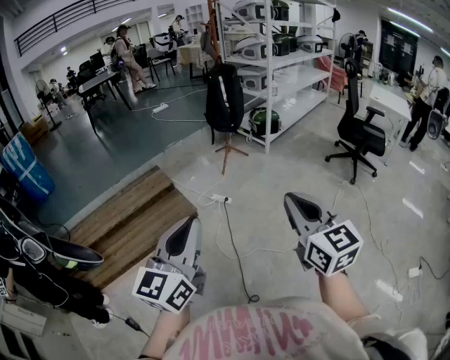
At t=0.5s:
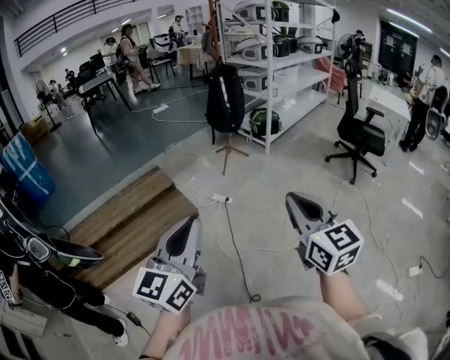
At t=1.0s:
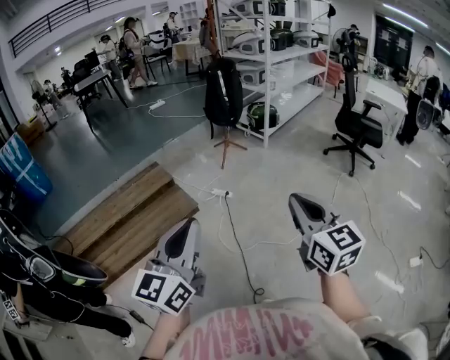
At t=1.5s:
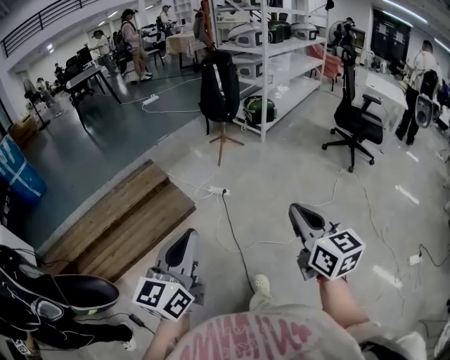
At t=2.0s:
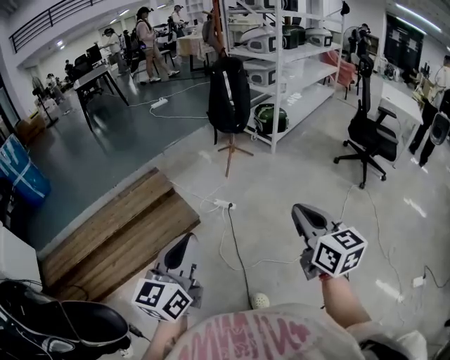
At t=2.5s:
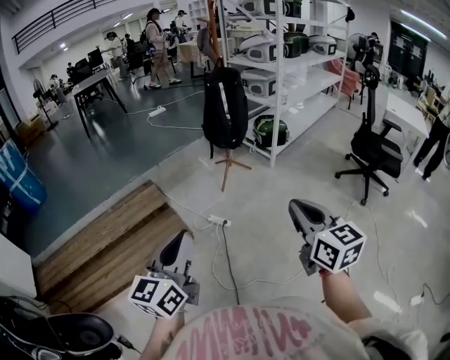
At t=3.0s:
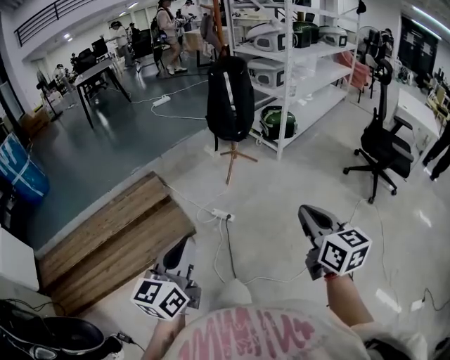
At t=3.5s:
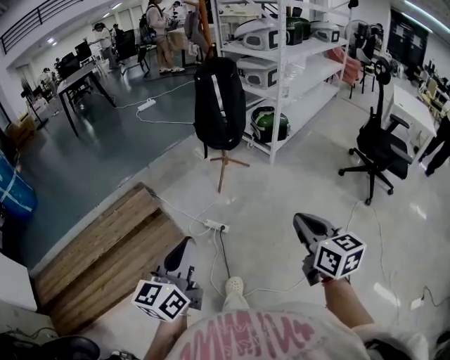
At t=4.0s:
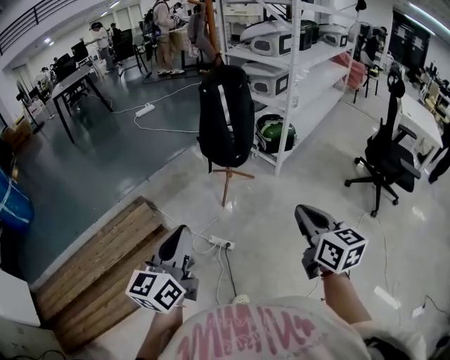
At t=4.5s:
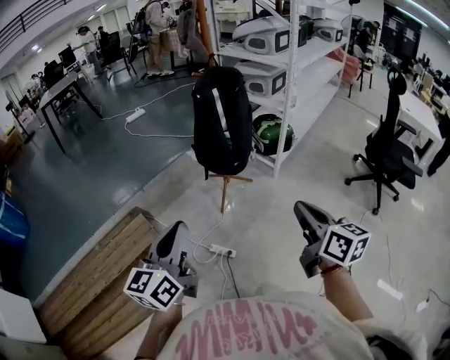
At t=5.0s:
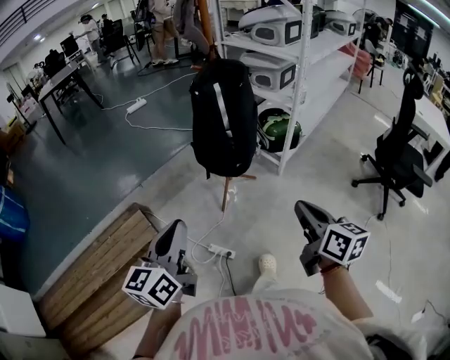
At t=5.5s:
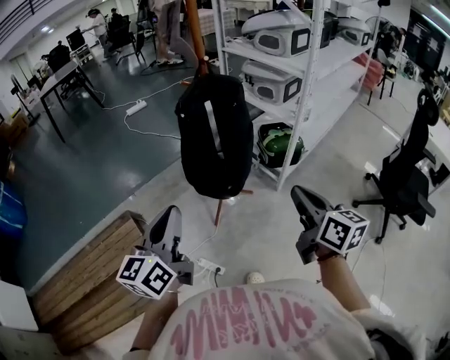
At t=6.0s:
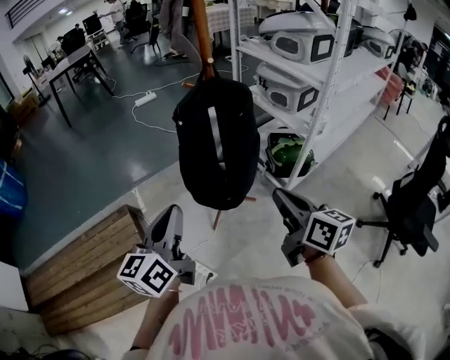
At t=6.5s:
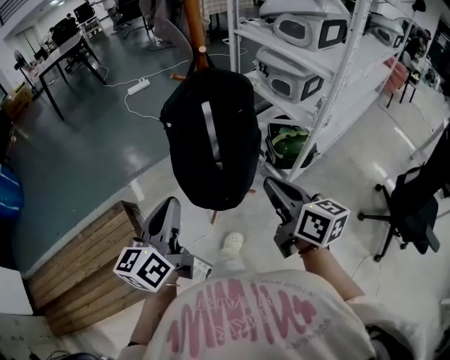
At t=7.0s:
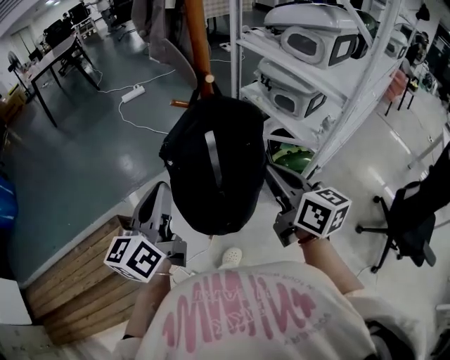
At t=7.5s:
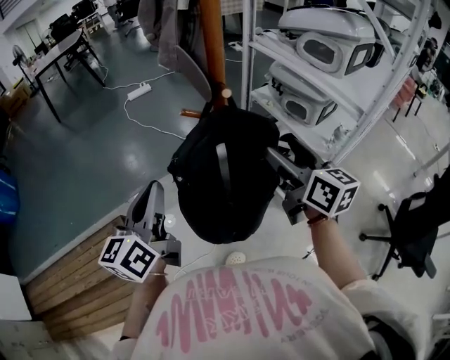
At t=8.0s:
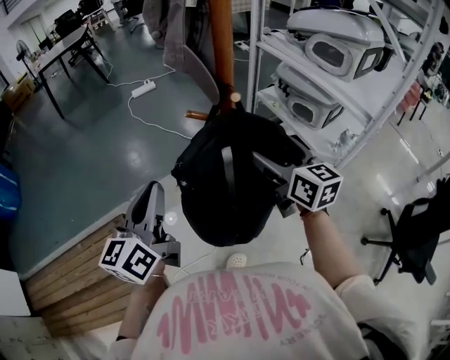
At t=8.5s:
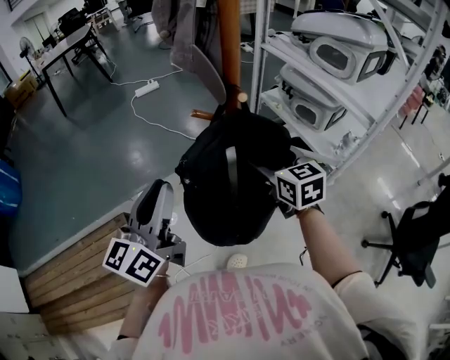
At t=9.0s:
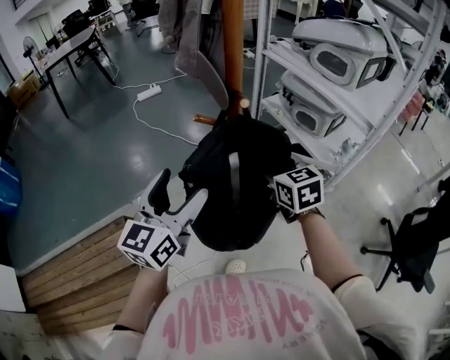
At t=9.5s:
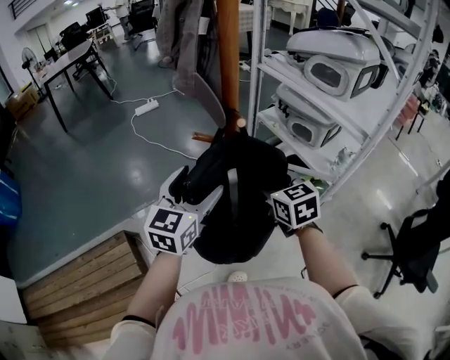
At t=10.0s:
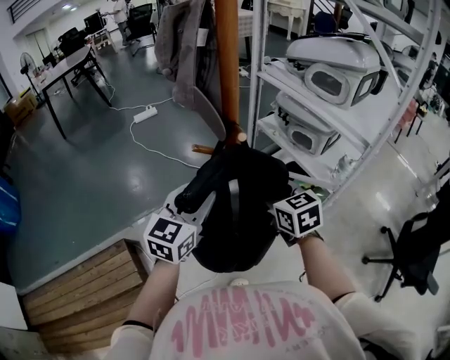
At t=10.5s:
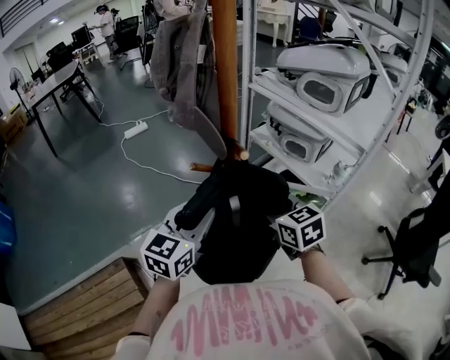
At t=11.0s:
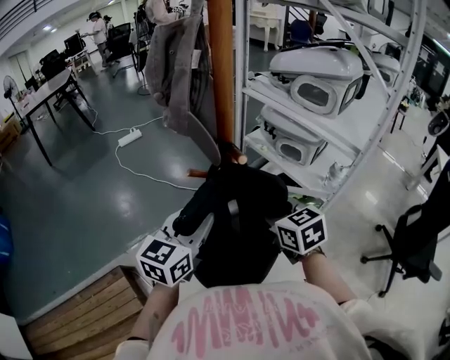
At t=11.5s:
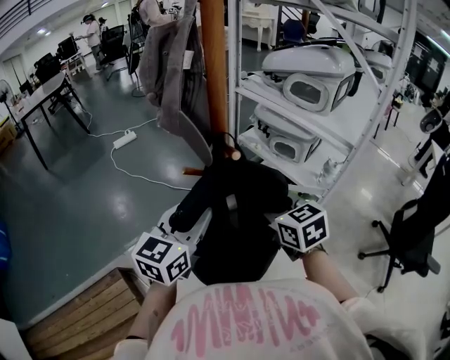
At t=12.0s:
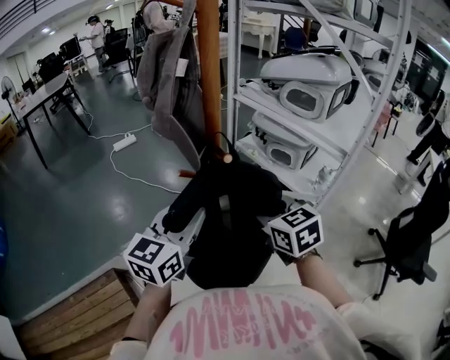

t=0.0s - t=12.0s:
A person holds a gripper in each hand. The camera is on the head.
t=0.0s - t=2.0s: The grippers both shift forward and downward by about 15 cm.
t=2.0s - t=4.0s: Both grippers are carried forward, approximately 40 cm.
t=4.0s - t=6.0s: Both grippers travel together forward, about 40 cm. The right gripper turns by about 20 degrees.
t=6.0s - t=8.0s: Both grippers travel together forward, roughly 30 cm. The right gripper opens.
t=8.0s - t=10.0s: The right gripper is displaced downward by about 5 cm, swivels roughly 20 degrees, and closes; the left gripper is displaced to the right and forward by roughly 15 cm, swivels approximately 30 degrees, and opens.
t=10.0s - t=12.0s: Both grippers move upward, some 5 cm.

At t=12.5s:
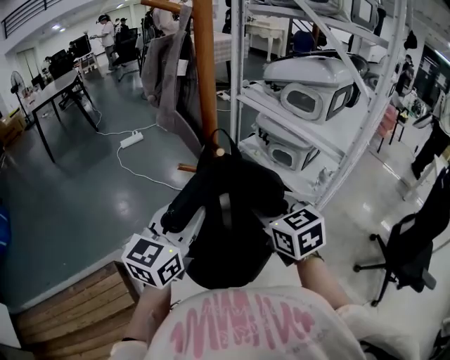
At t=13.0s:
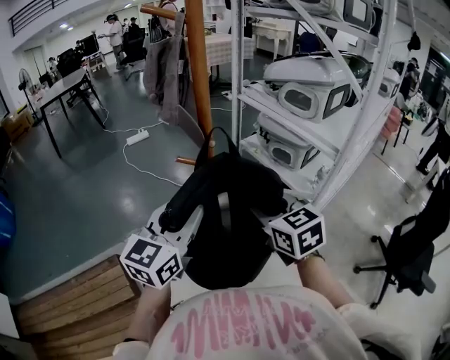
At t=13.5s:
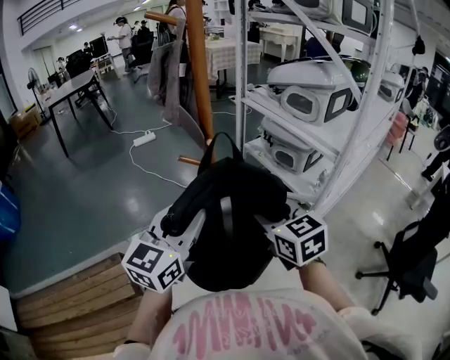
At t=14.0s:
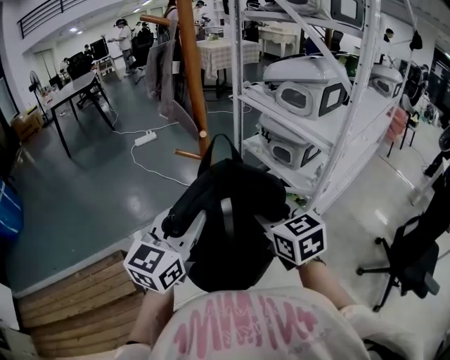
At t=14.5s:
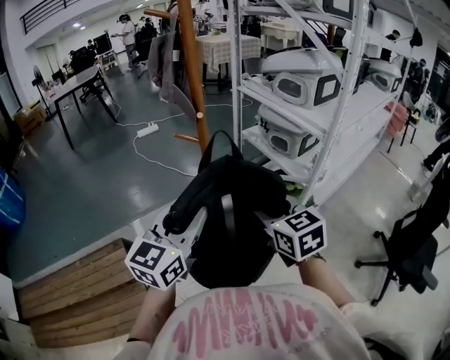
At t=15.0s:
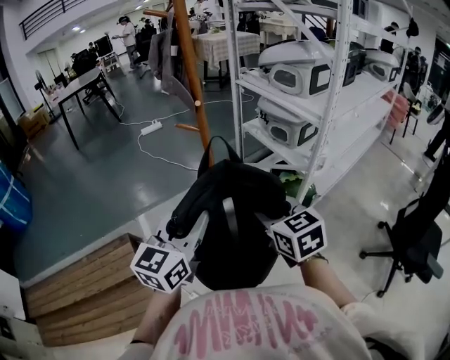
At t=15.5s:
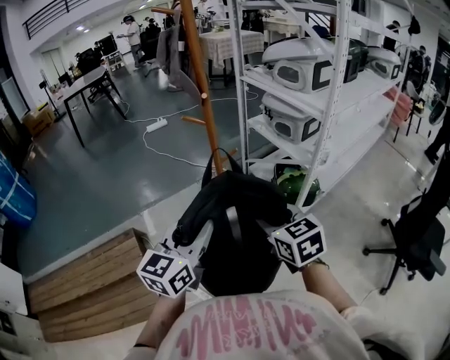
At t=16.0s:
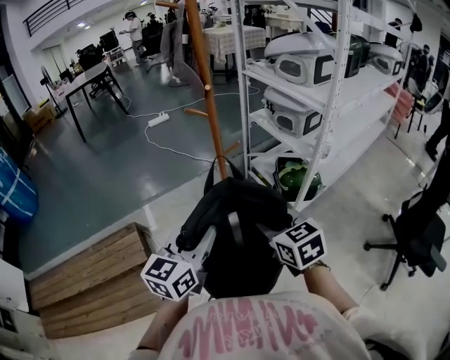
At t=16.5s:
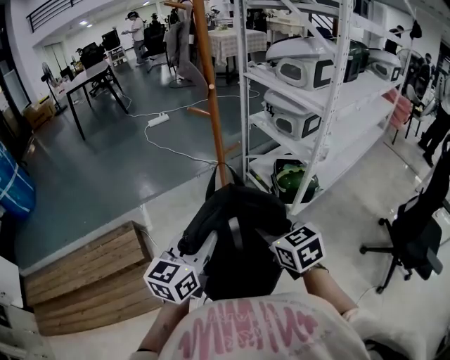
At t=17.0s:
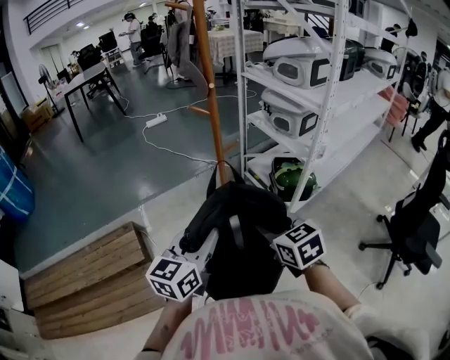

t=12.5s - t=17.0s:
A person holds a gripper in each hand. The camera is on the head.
t=12.5s - t=14.5s: The two grippers go about 15 cm backward.
t=14.5s - t=17.0s: The grippers both shift backward and downward by some 20 cm.

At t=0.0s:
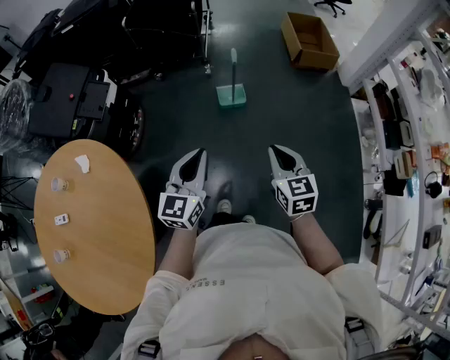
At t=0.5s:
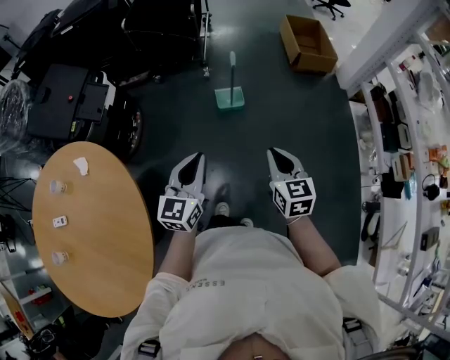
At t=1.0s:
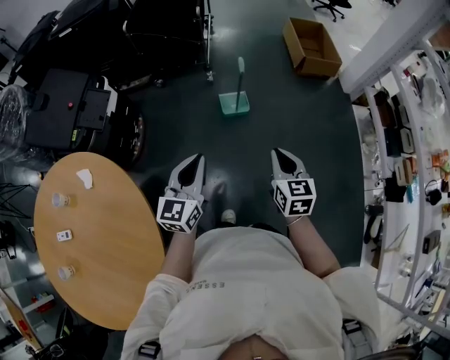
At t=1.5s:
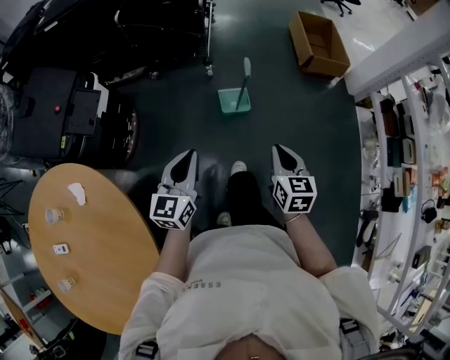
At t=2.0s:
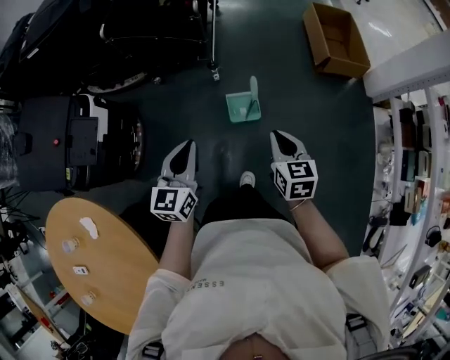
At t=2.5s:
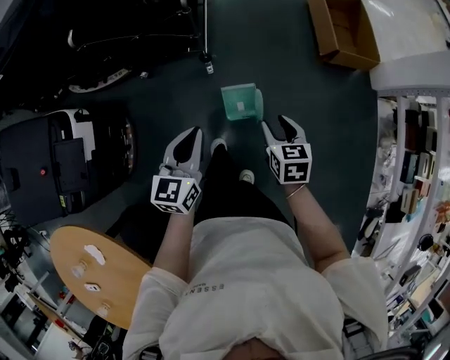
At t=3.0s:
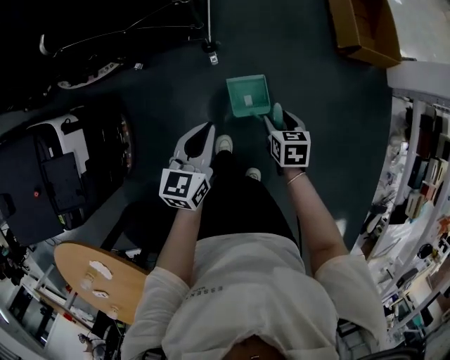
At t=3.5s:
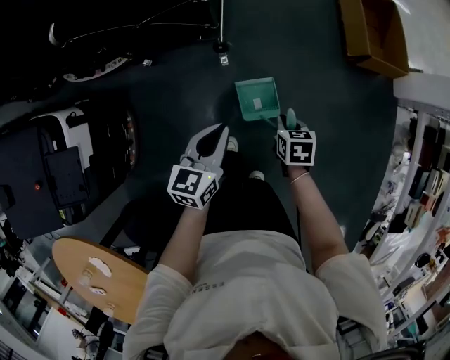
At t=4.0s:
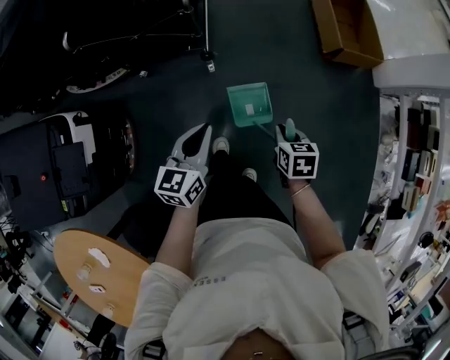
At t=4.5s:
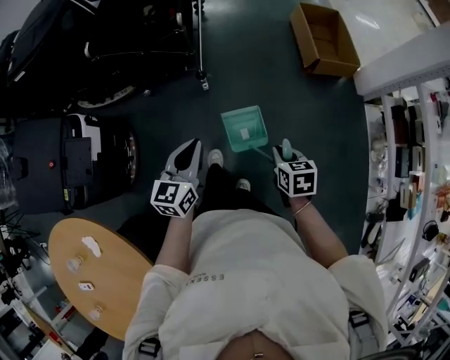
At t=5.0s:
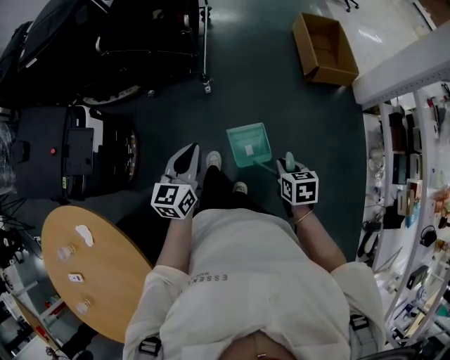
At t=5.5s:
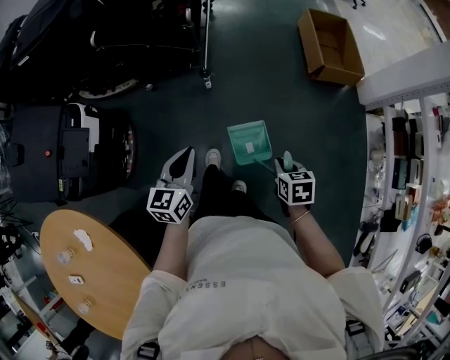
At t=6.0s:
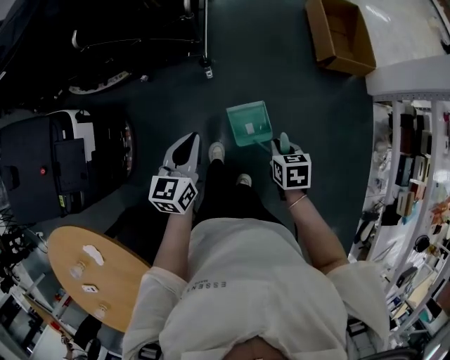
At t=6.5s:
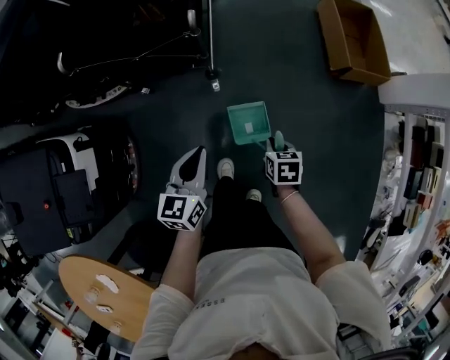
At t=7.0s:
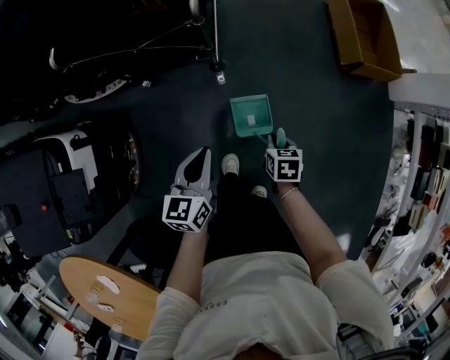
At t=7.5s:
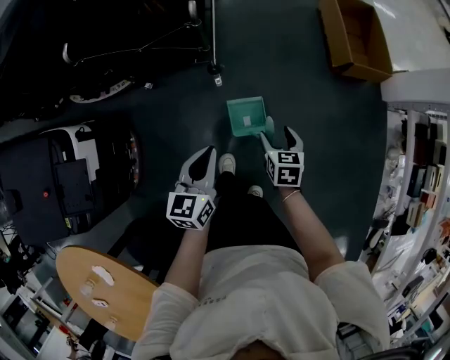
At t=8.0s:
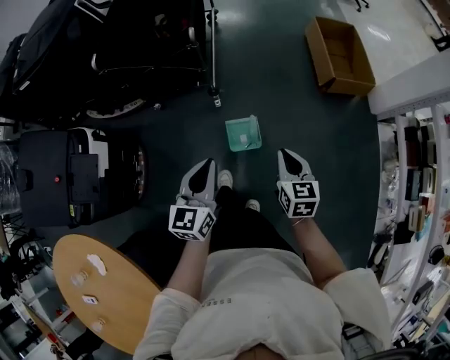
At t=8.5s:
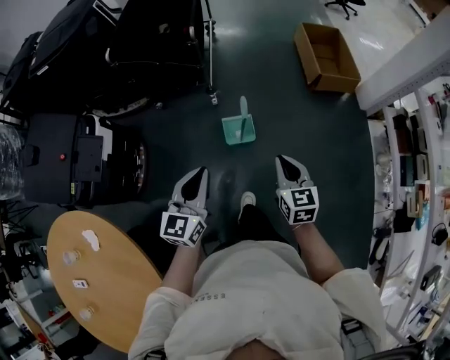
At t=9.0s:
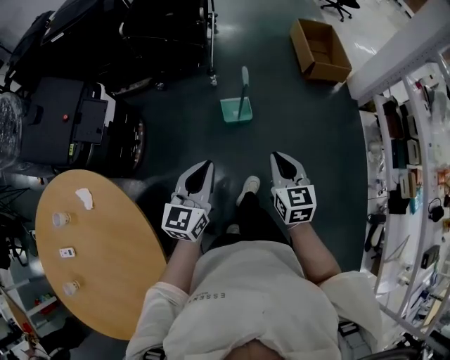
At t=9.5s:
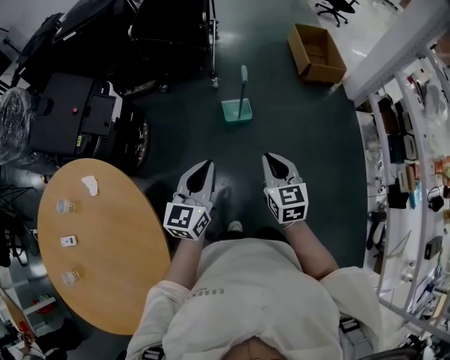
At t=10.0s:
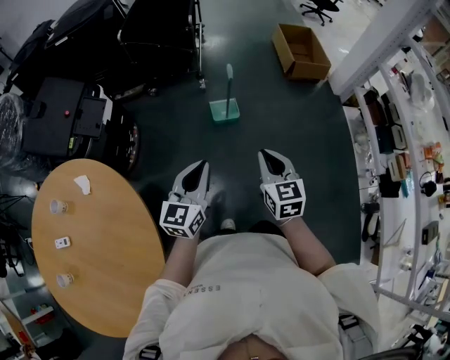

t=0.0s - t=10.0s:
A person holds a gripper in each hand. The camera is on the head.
t=0.0s - t=2.0s: The two grippers go some 40 cm forward.
t=2.0s - t=4.0s: Both grippers travel together forward and downward, about 20 cm. The right gripper turns by approximately 20 degrees, and opens, then closes again.
t=4.0s - t=6.0s: The left gripper travels backward and back again, some 15 cm each way; the right gripper reaches approximately 20 cm backward, then returns.
t=6.0s - t=8.0s: The left gripper travels downward and back again, some 10 cm each way. The right gripper goes downward and returns, approximately 15 cm each way, swivels about 30 degrees, and opens, then closes again.
t=8.0s - t=10.0s: The pair of grippers is taken backward, about 40 cm.
